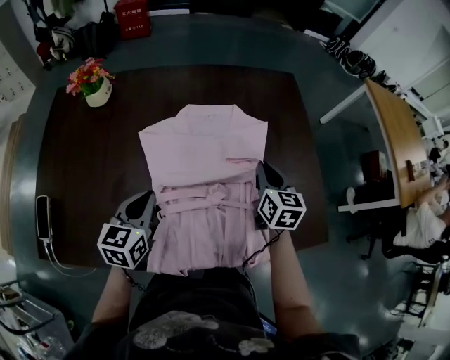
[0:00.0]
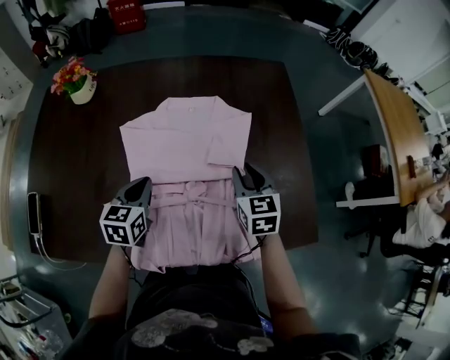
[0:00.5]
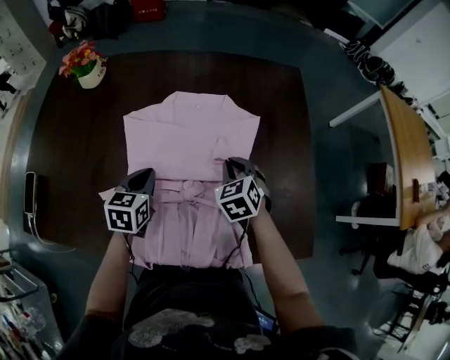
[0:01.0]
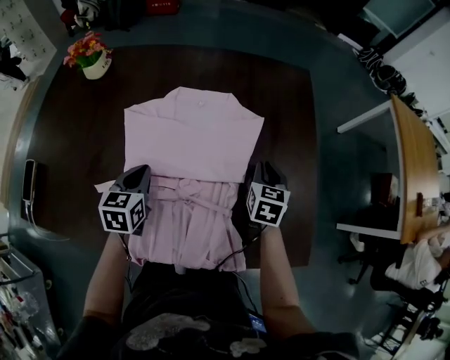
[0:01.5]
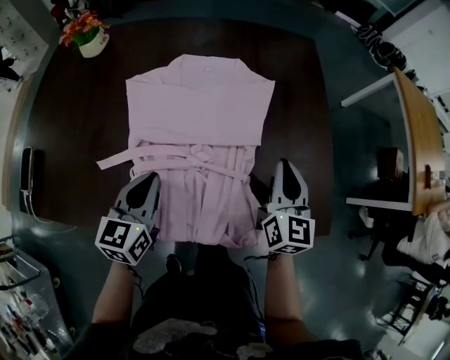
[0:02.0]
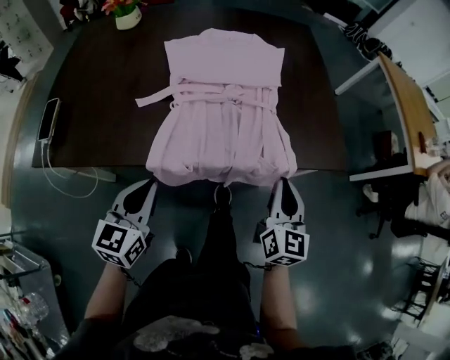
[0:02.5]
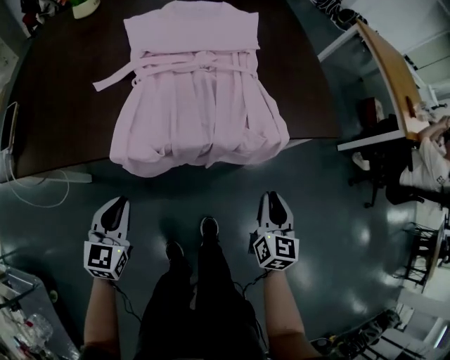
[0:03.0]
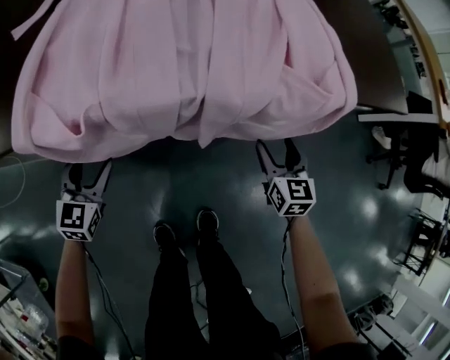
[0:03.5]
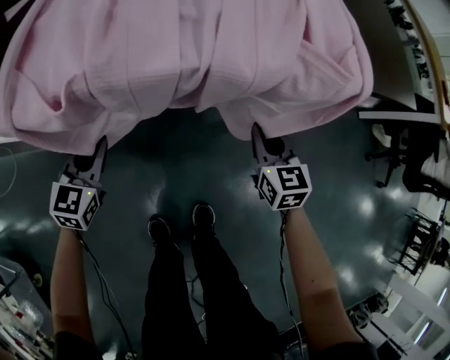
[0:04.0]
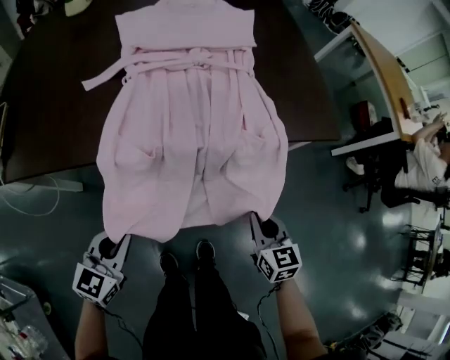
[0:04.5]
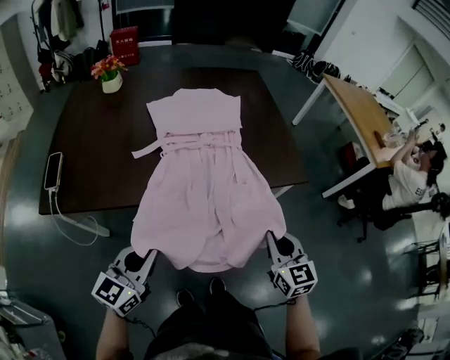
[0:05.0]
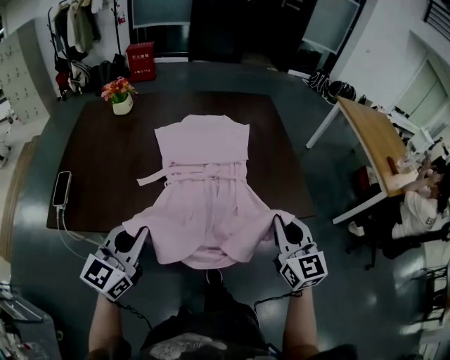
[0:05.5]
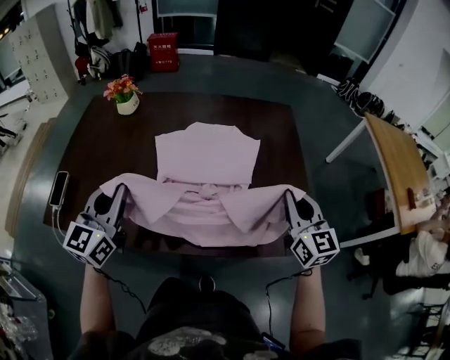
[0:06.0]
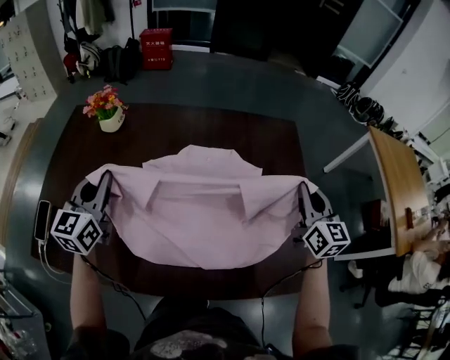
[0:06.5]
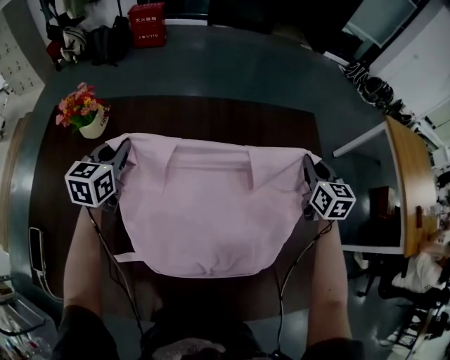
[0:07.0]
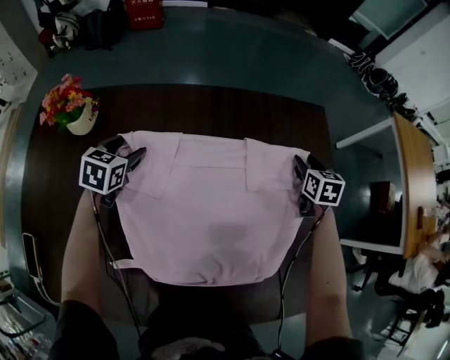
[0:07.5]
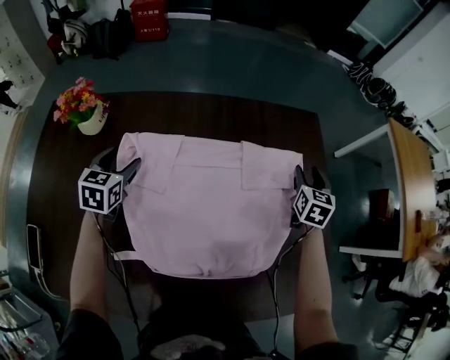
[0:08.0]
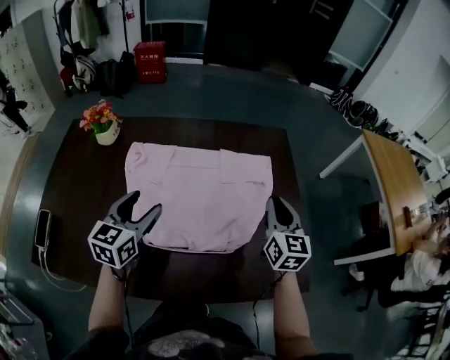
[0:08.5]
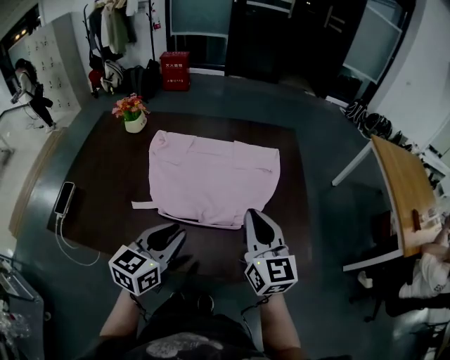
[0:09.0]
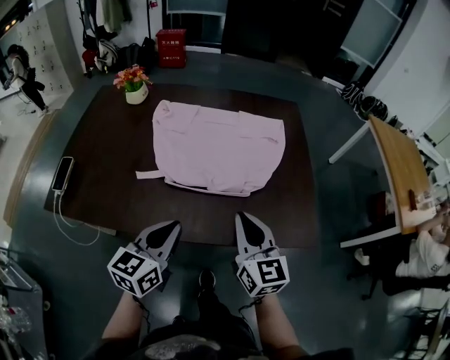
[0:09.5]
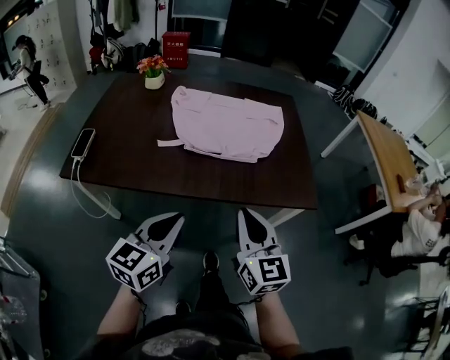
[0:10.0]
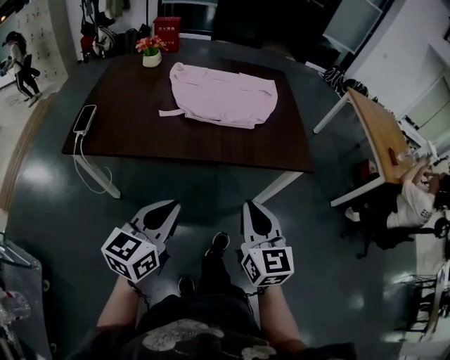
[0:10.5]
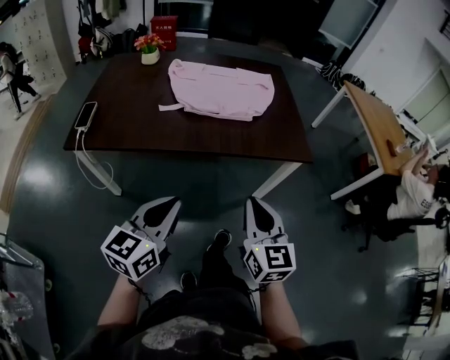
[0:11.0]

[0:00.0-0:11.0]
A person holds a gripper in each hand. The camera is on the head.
0:00.0 to 0:02.0: The left gripper travels to the right by approximately 10 cm. The right gripper moves to the right and backward, roughly 10 cm.
0:02.0 to 0:03.5: Both grippers move downward and backward, some 40 cm. The right gripper opens its fingers, while the left gripper turns by roughly 20 degrees, and opens up.
0:03.5 to 0:05.5: Both grippers move upward, roughly 50 cm. The right gripper swivels some 30 degrees, and closes up. The left gripper changes its angle by about 30 degrees, and closes.
0:05.5 to 0:07.5: The two grippers travel together, forward, roughly 60 cm. The left gripper tilts its fingers roughly 40 degrees downward, and opens up; the right gripper points its fingers approximately 30 degrees further downward, and opens up.
0:07.5 to 0:09.0: The left gripper heads backward, to the right and upward, covering roughly 50 cm, turns by approximately 30 degrees, and closes, while the right gripper shifts some 50 cm backward and upward, angles its fingers upward, by approximately 40 degrees, and closes its fingers.
0:09.0 to 0:11.0: Both grippers travel together backward, some 40 cm.

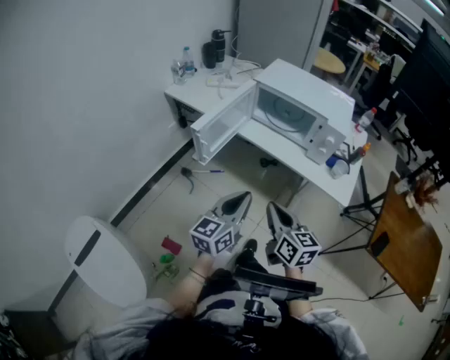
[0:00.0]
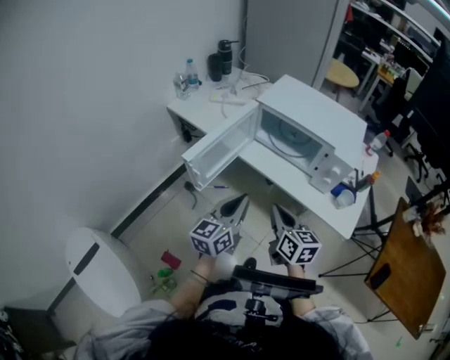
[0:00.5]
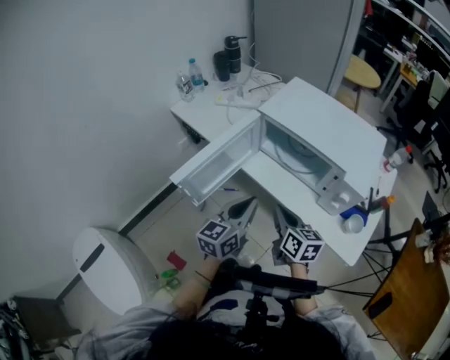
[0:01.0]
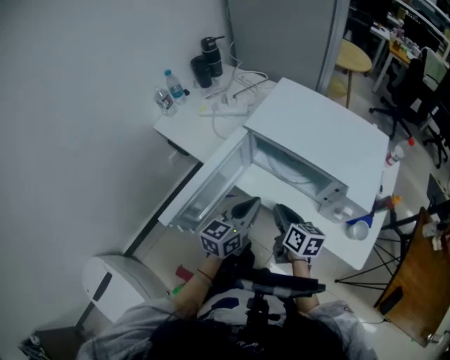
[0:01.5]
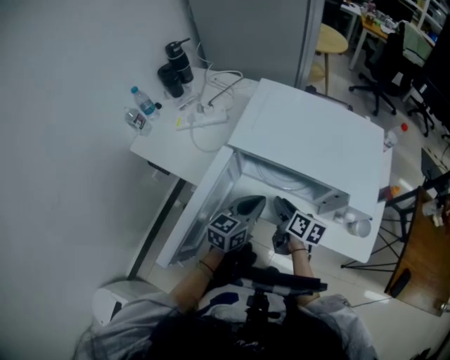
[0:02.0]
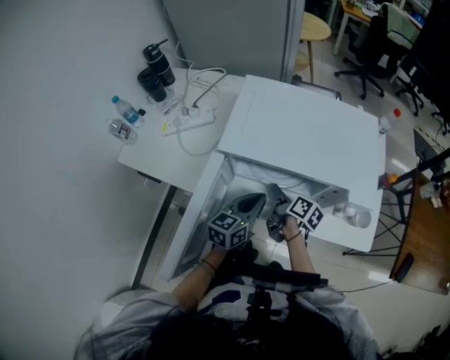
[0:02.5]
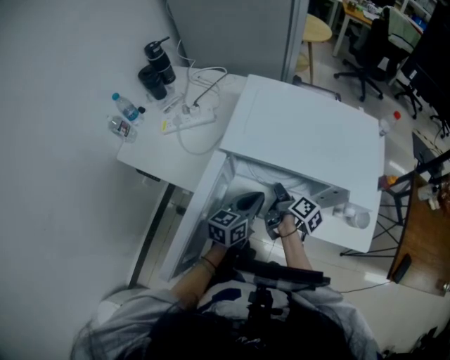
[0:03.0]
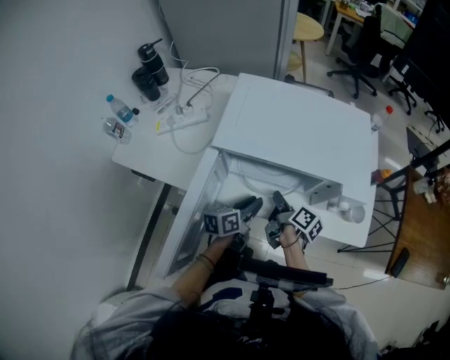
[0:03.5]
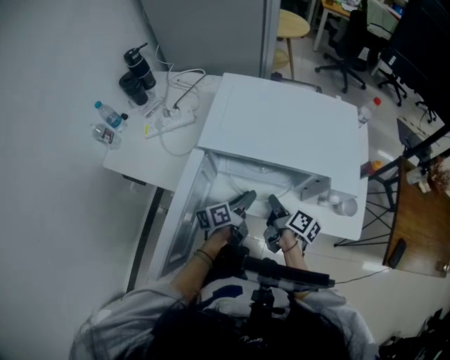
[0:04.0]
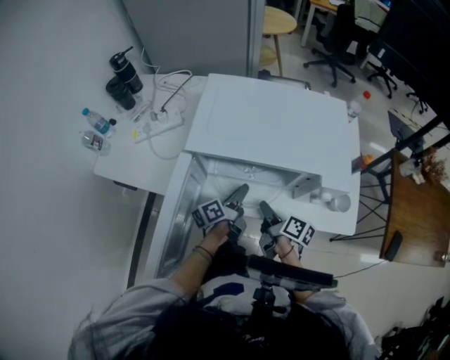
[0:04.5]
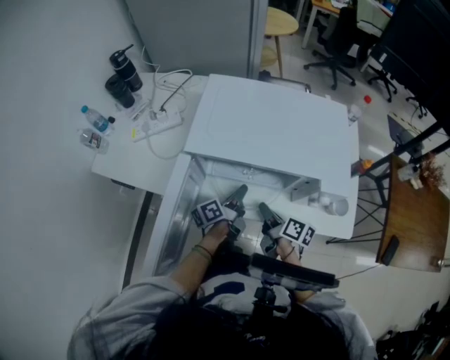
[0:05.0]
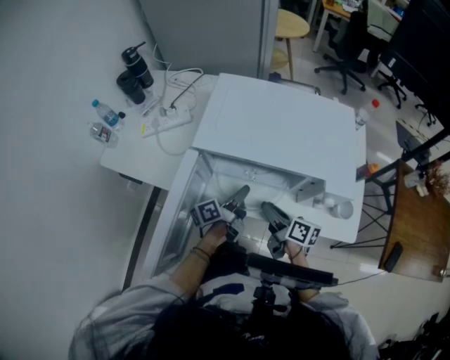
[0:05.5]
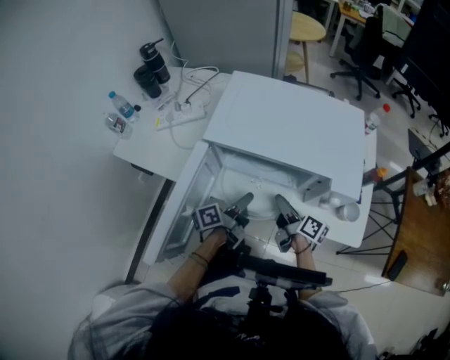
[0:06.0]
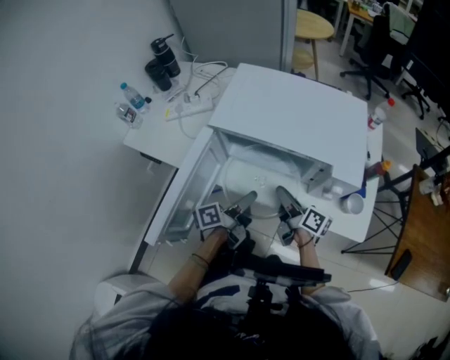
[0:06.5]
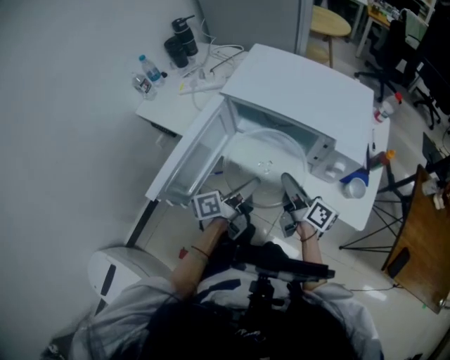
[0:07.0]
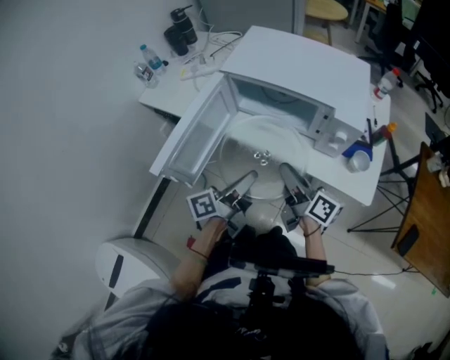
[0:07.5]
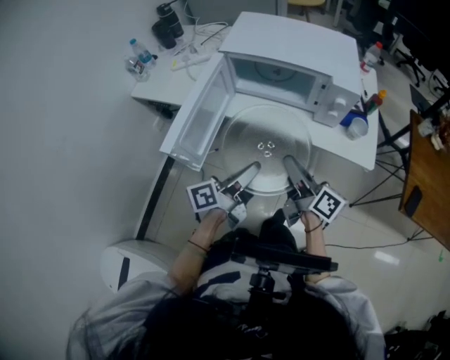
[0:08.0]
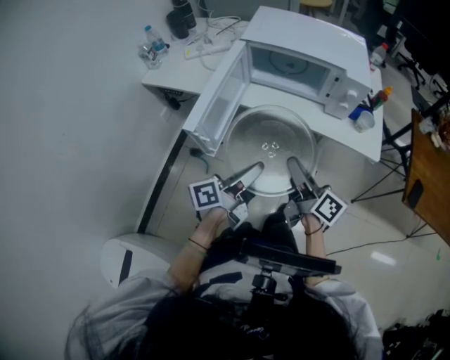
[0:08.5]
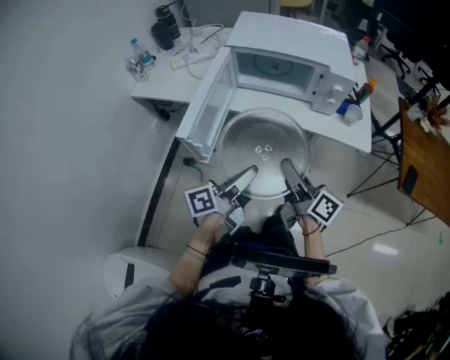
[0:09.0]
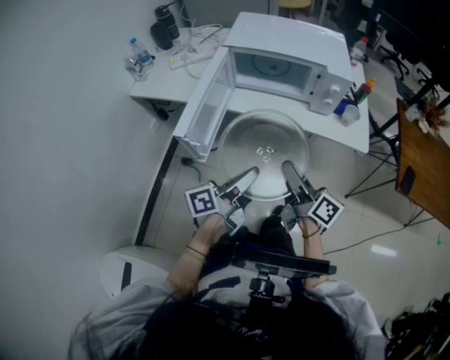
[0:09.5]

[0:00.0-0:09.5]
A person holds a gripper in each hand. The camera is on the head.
0:00.0 to 0:02.0: The grippers both shift forward by roughly 40 cm. The right gripper swivels some 40 degrees, and opens its fingers; the left gripper changes its angle by roughly 20 degrees.
0:02.0 to 0:04.0: The right gripper shifts about 5 cm to the right, turns by some 30 degrees, and closes its fingers, while the left gripper travels downward by about 10 cm, rotates around the line of its fingers by roughly 40 degrees, counterclockwise from behind, and opens its fingers.
0:04.0 to 0:05.5: The left gripper closes. Meanwhile the right gripper opens up.
0:05.5 to 0:07.5: Both grippers travel together backward and upward, about 20 cm. The right gripper swivels roughly 20 degrees.
0:07.5 to 0:09.5: The grippers both shift backward by roughly 15 cm.

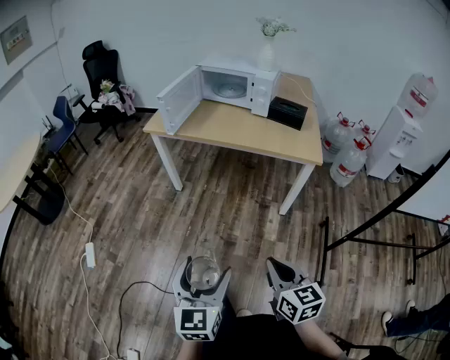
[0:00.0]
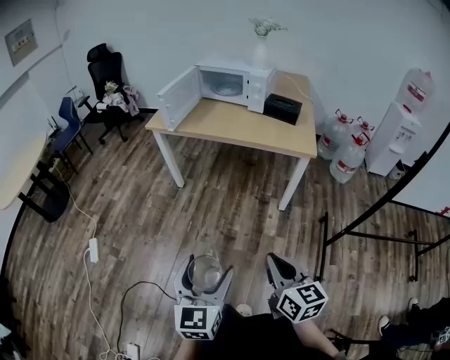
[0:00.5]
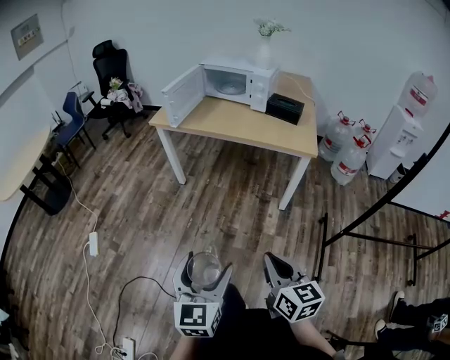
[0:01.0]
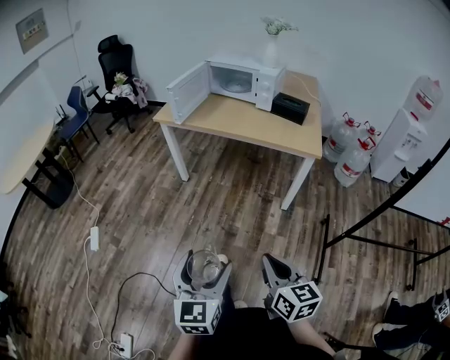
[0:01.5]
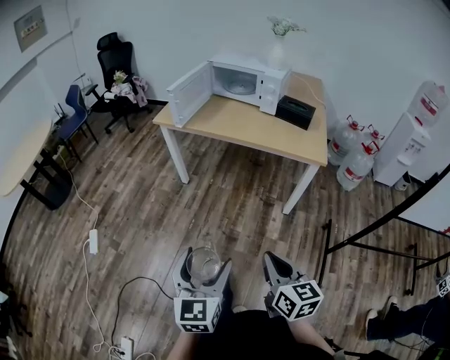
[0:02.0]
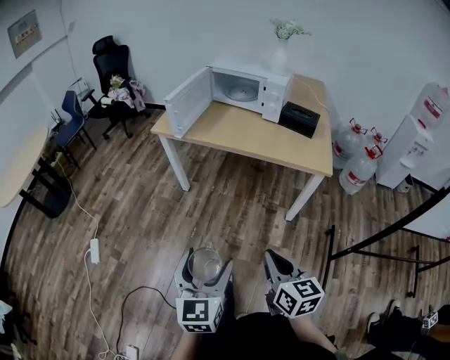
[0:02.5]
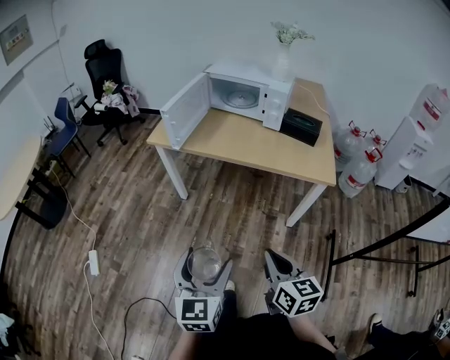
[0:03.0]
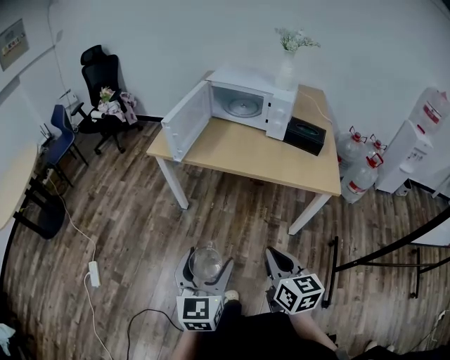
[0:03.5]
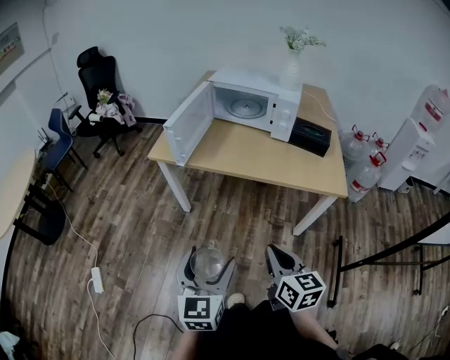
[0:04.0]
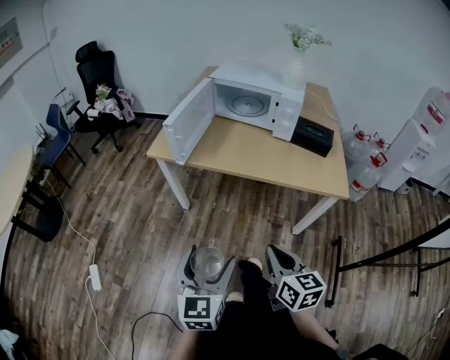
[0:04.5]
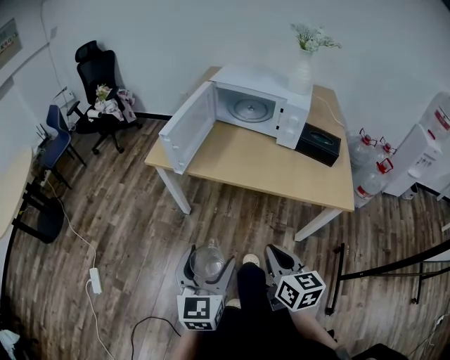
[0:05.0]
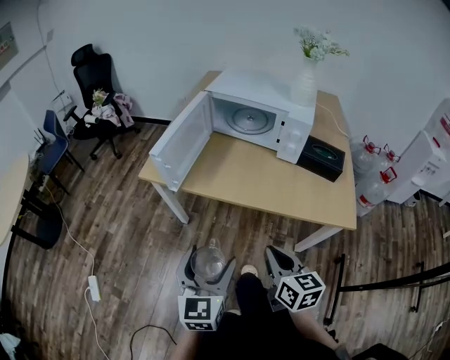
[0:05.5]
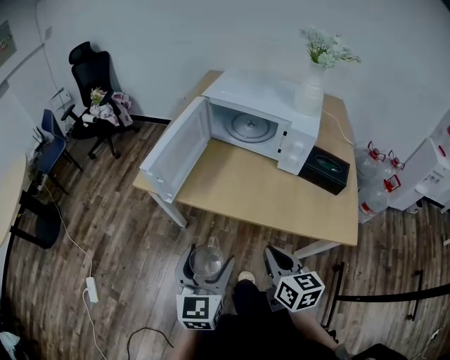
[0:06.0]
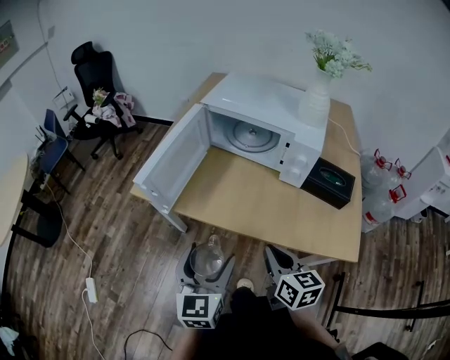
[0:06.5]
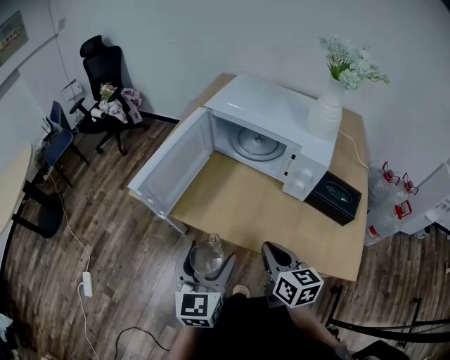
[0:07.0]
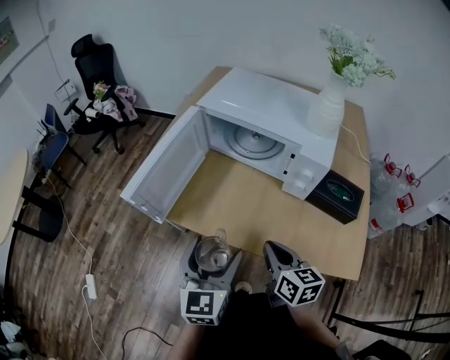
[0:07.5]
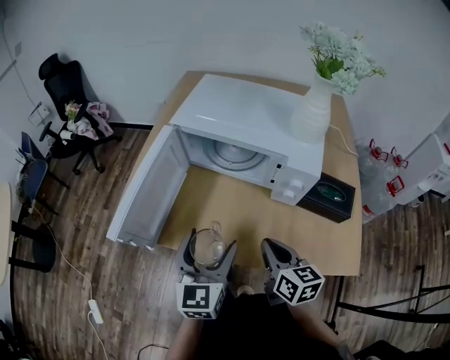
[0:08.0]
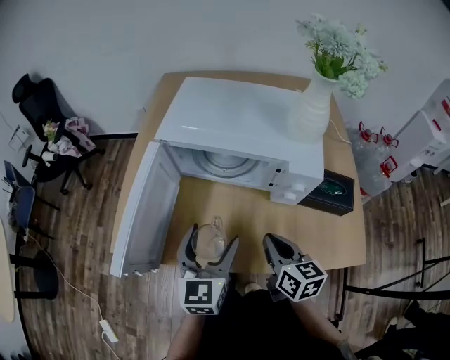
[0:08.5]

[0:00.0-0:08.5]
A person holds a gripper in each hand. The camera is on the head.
0:00.0 to 0:02.0: The left gripper reaches roughly 10 cm backward, then returns.
0:02.0 to 0:04.0: Both grippers travel together forward, about 25 cm.
0:04.0 to 0:06.5: Both grippers travel together forward, roughly 30 cm.
0:06.5 to 0:08.5: The two grippers go about 20 cm forward.
